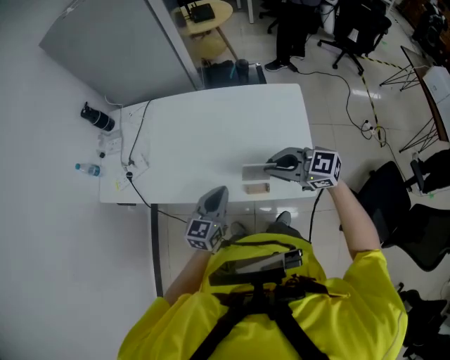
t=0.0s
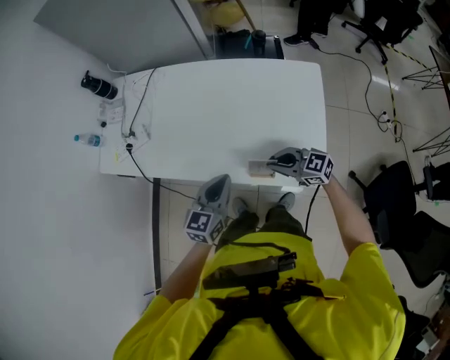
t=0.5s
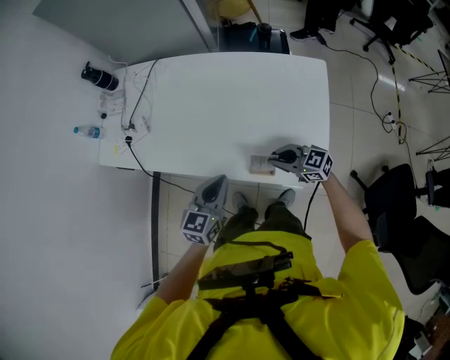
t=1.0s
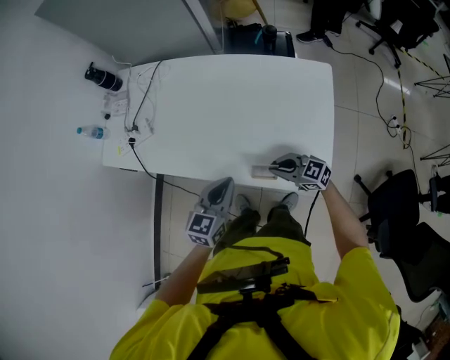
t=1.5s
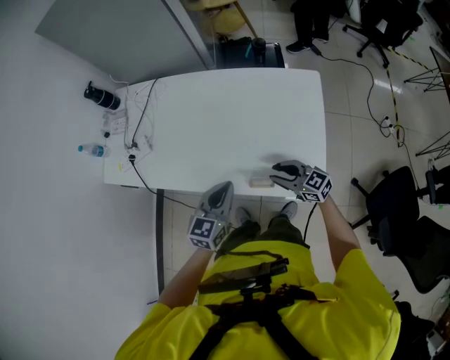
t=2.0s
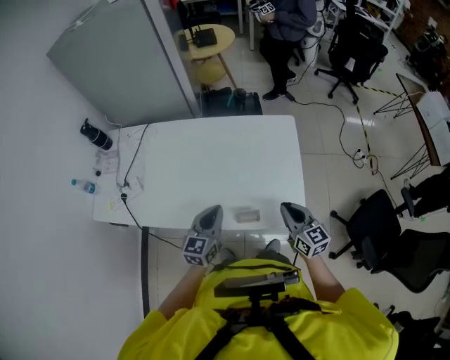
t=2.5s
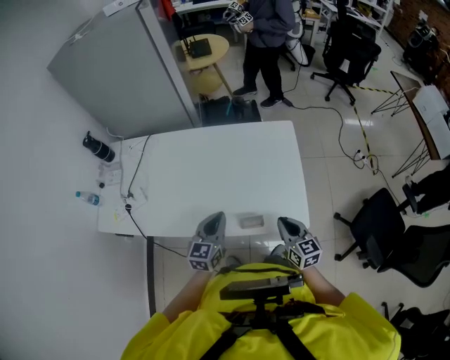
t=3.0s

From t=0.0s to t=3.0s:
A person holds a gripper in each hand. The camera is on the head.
From t=0.0s to t=1.5s: The right gripper moves downward, some 20 cm.
From t=1.5s to t=3.0s: The right gripper goes about 10 cm upward, rotates some 60 degrees, and opens, then closes once more.

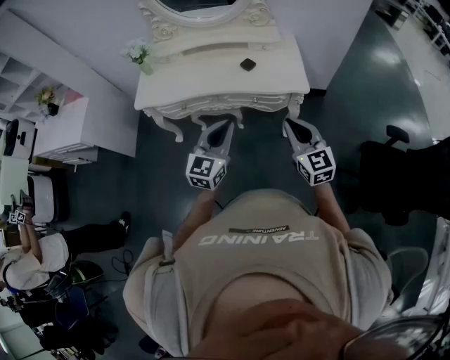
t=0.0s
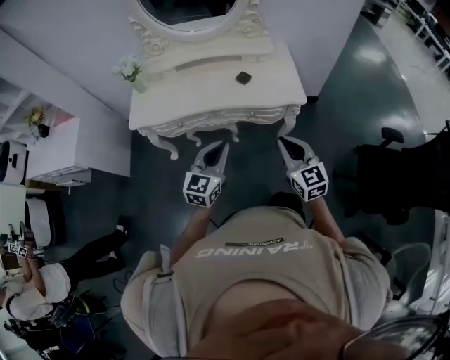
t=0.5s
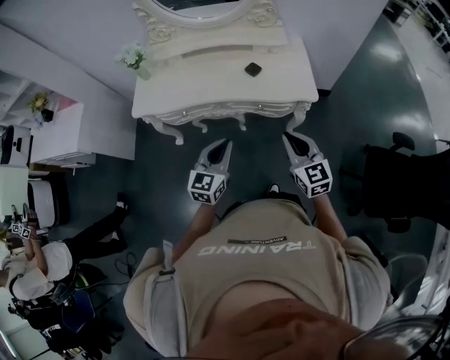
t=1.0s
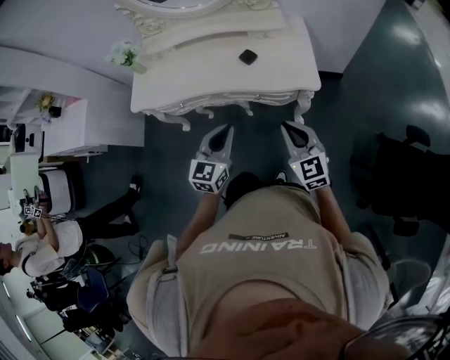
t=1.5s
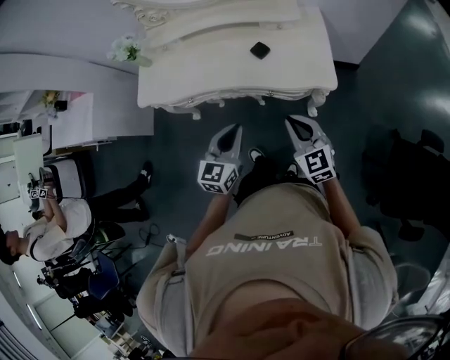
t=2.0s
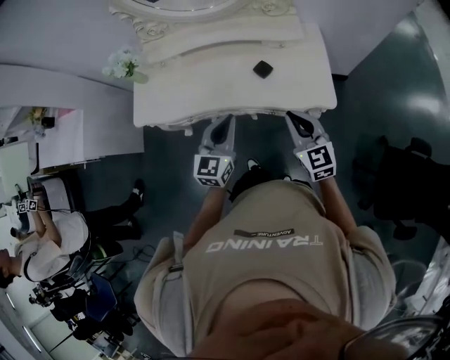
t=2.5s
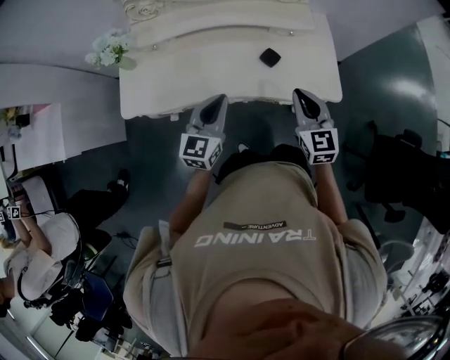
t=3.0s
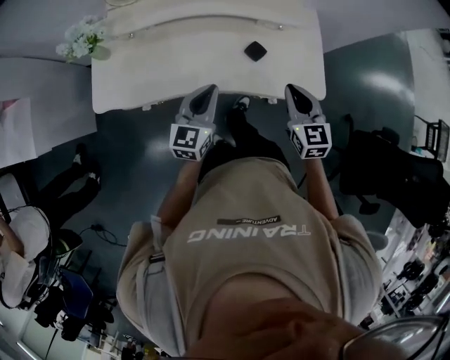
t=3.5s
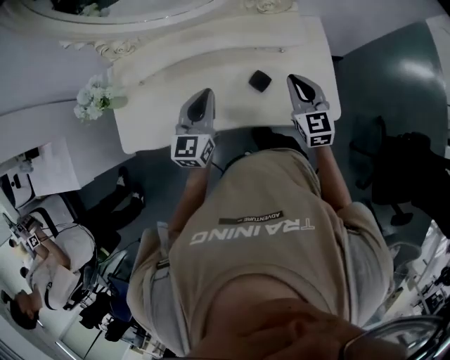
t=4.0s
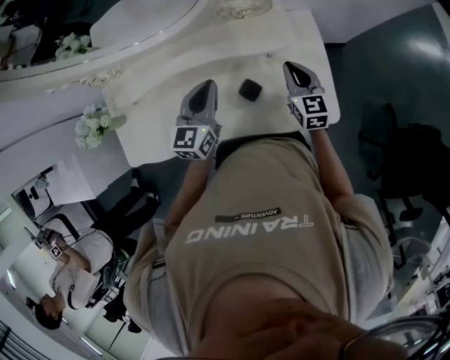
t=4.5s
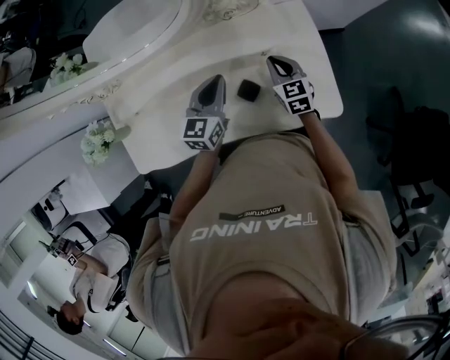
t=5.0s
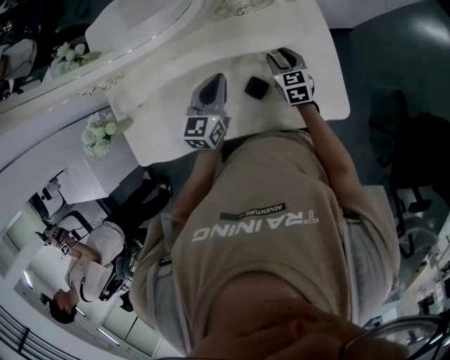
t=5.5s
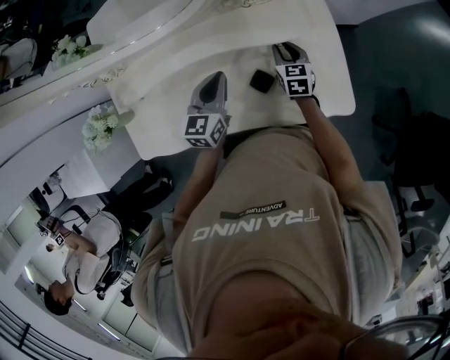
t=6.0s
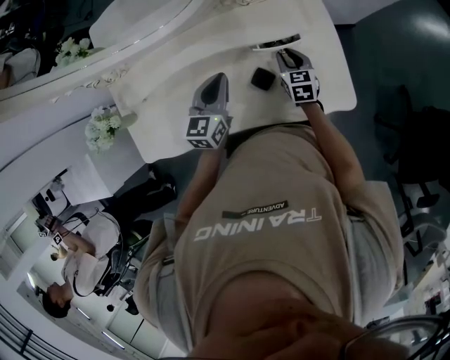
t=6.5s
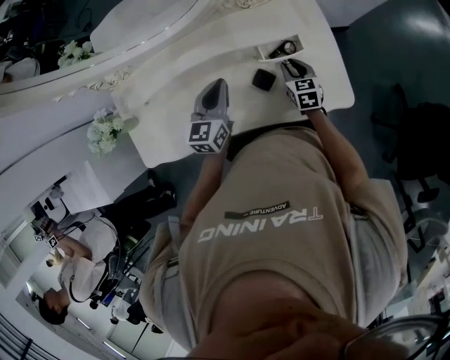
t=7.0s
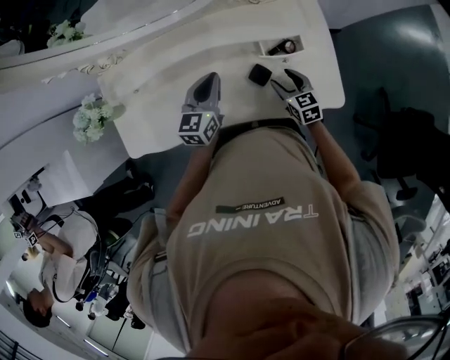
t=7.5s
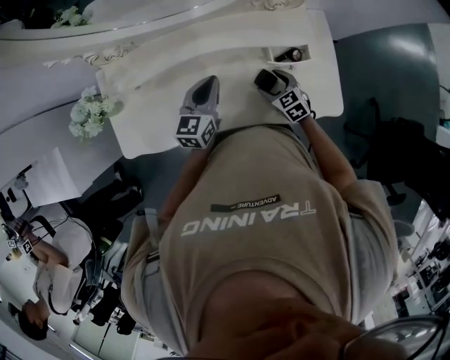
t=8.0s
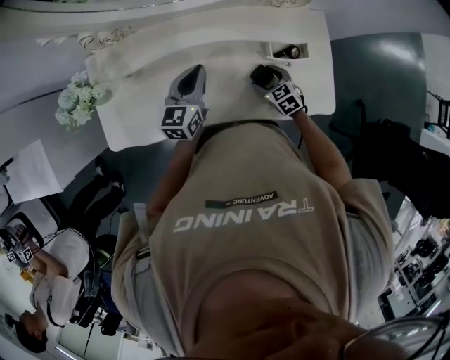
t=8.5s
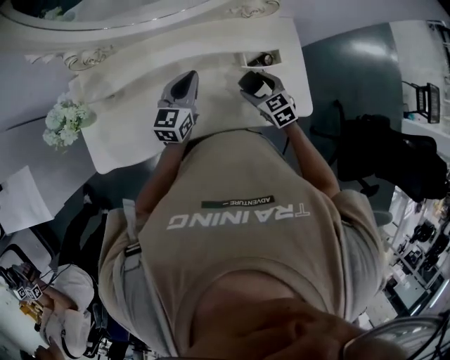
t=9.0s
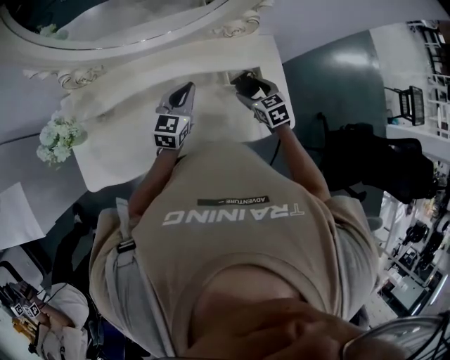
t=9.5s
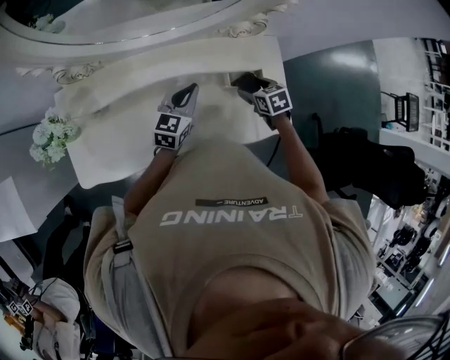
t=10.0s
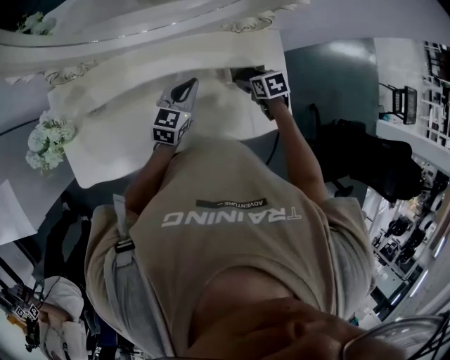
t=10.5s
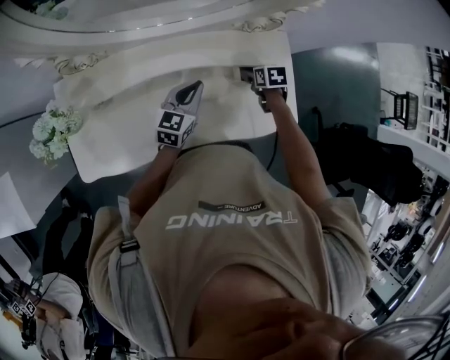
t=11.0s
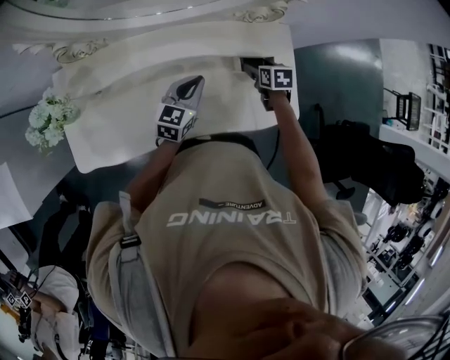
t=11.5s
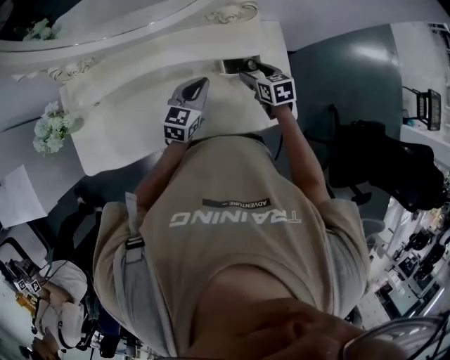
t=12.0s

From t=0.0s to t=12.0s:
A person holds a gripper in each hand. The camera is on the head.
From t=0.0s to t=2.0s: The grippers both shift forward and downward by some 20 cm.
From t=2.0s to t=4.0s: The grippers both shift forward by some 35 cm. The right gripper swivels some 20 degrees.
From t=4.0s to t=6.0s: The left gripper moves forward, downward and to the right, roughly 15 cm. The right gripper heads downward and forward, covering some 25 cm, and changes its angle by about 20 degrees.
From t=6.0s to t=8.0s: The left gripper moves to the left, some 10 cm. Meanwhile the right gripper goes about 15 cm backward and to the left, rotates approximately 30 degrees, and opens up.
From t=8.0s to t=10.0s: The left gripper shifts by roughly 5 cm. Meanwhile the right gripper heads to the right, upward and forward, covering roughly 10 cm, and swivels approximately 20 degrees.
From t=10.0s to t=12.0s: The left gripper moves to the right, about 10 cm.

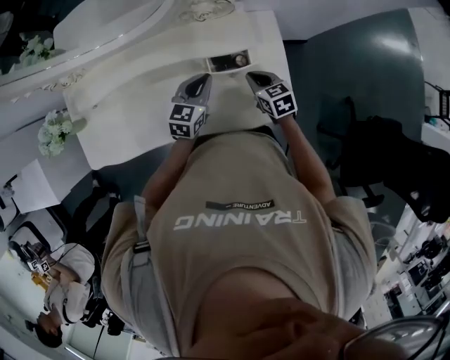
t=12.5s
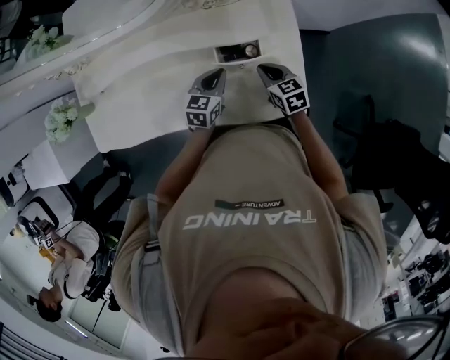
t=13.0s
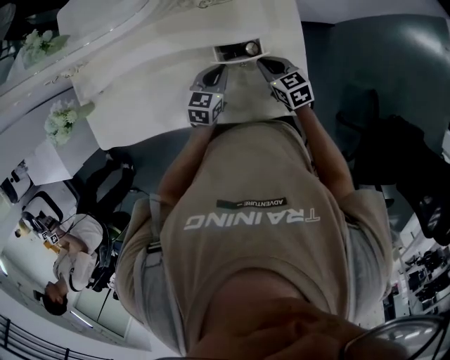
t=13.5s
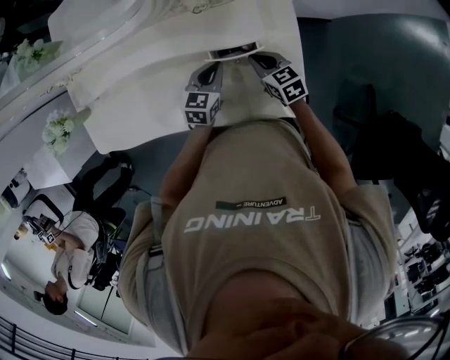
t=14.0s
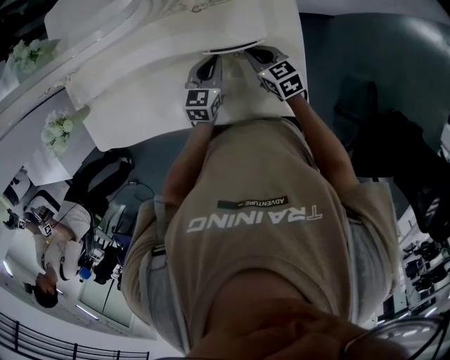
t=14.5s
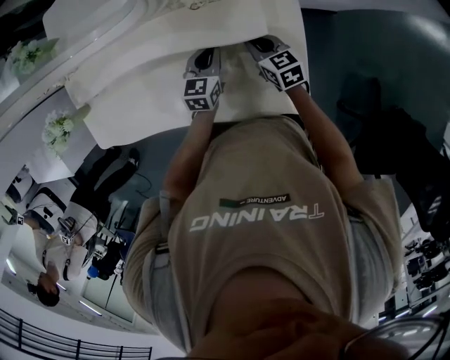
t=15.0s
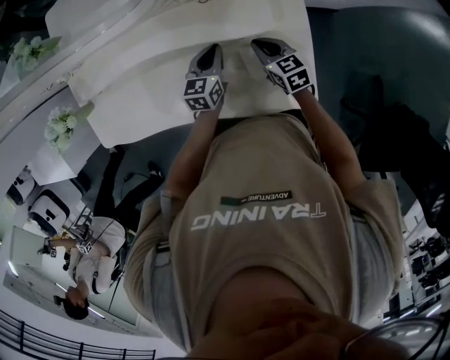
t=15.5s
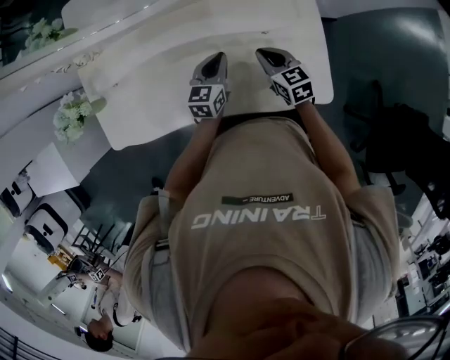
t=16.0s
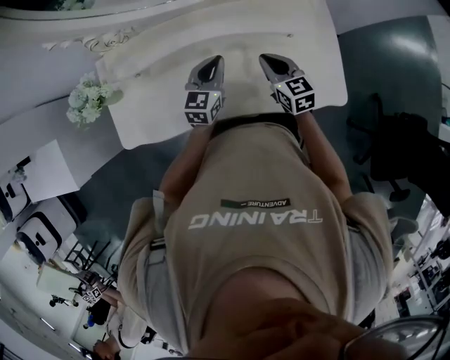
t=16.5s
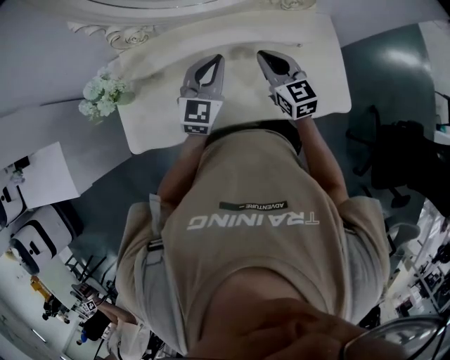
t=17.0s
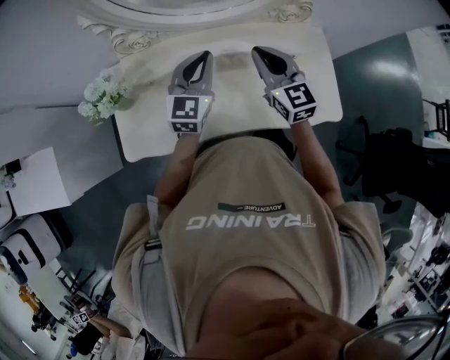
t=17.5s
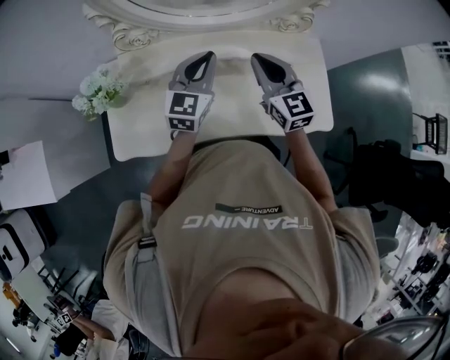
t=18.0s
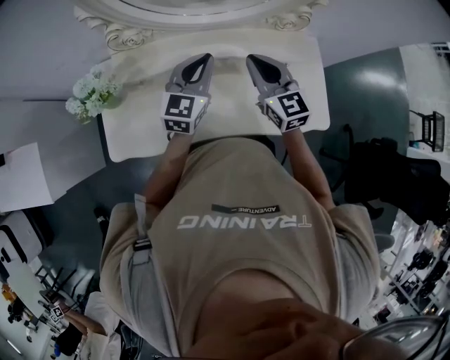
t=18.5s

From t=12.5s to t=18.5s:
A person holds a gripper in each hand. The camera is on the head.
From t=12.5s to t=14.5s: The right gripper heads forward, covering about 5 cm, while the left gripper heads downward, covering roughly 10 cm.
From t=14.5s to t=16.5s: Both grippers travel together to the left and upward, approximately 25 cm.
From t=16.5s to t=18.5s: Both grippers move upward and to the left, approximately 15 cm. The right gripper changes its angle by approximately 20 degrees.

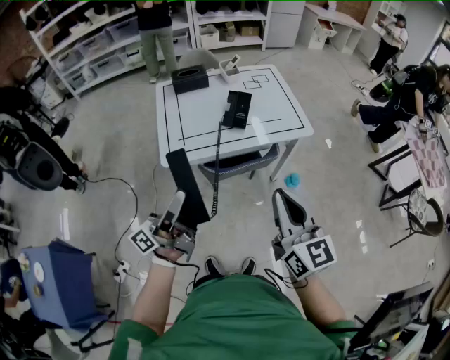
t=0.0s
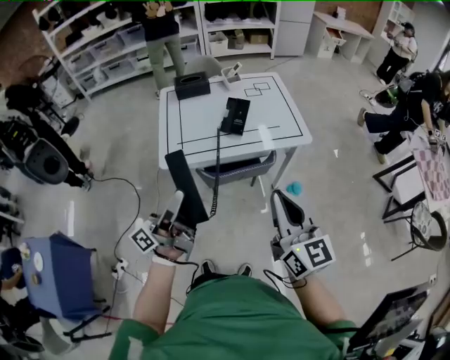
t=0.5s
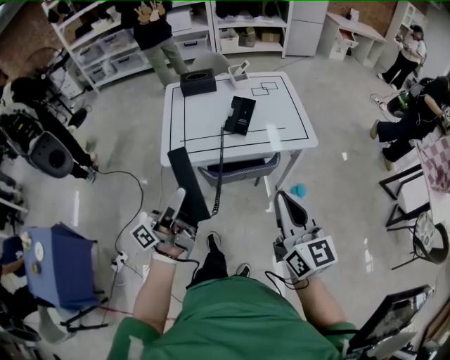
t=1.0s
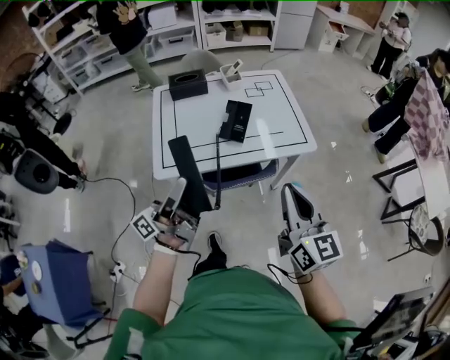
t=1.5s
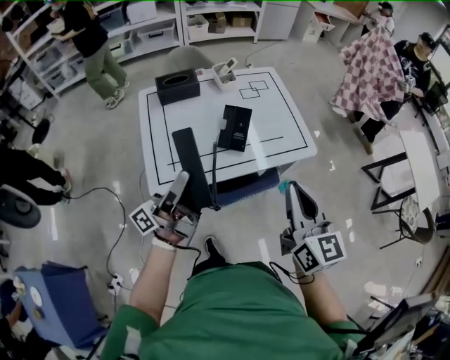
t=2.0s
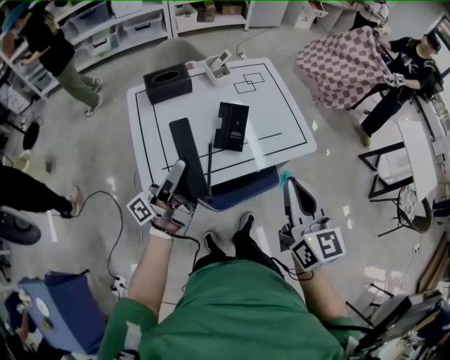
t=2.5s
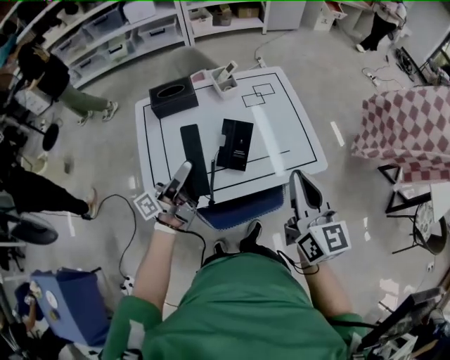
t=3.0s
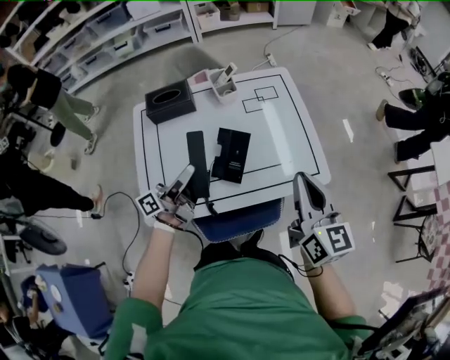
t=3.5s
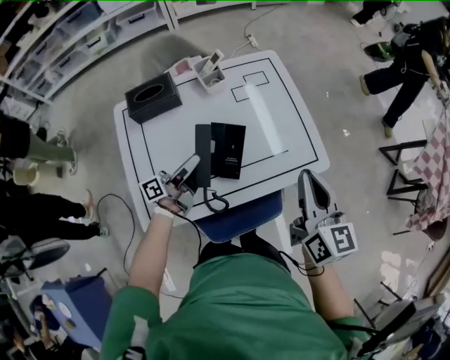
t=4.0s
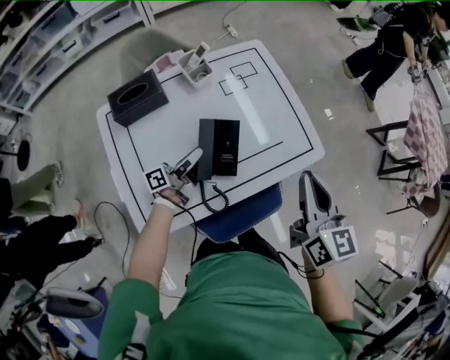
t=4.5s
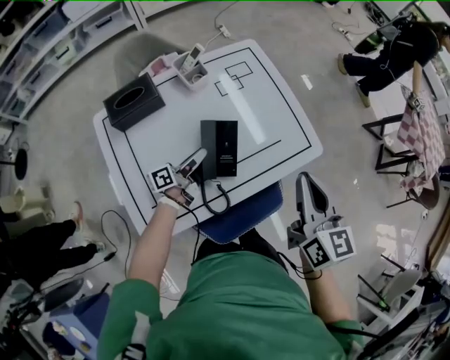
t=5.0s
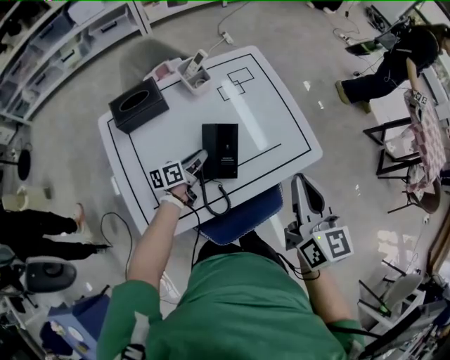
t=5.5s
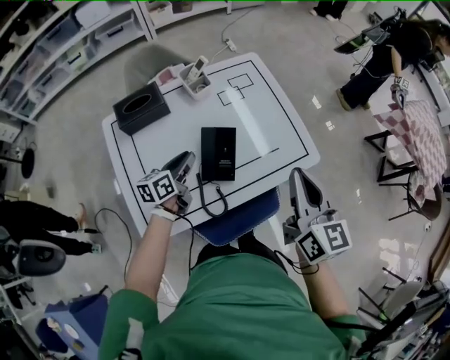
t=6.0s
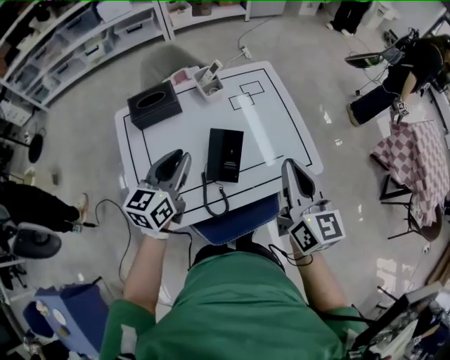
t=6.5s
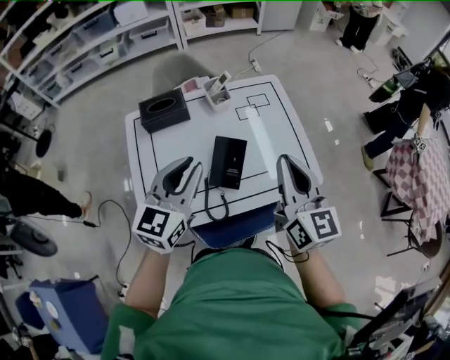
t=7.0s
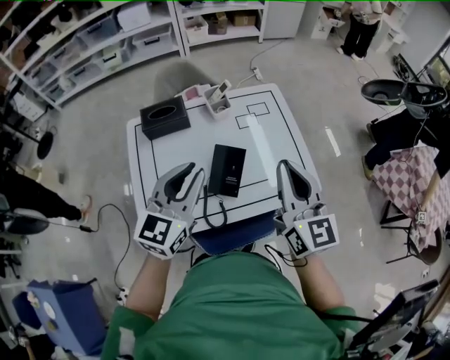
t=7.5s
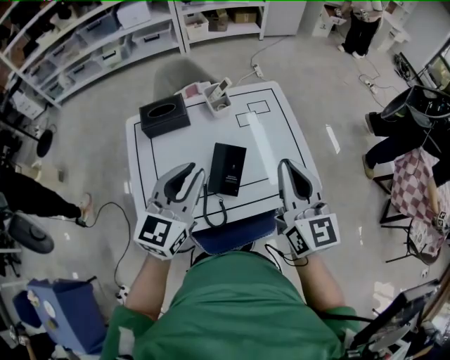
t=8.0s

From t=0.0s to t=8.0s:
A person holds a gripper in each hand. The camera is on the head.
From t=0.0s to t=2.0s: The two grippers go some 20 cm forward.
From t=2.0s to t=4.0s: The left gripper shifts about 35 cm forward and downward, and swivels roughly 30 degrees. Meanwhile the right gripper is displaced forward by about 25 cm.
From t=4.0s to t=6.0s: The left gripper reaches approximately 10 cm downward, then returns, and rotates about 40 degrees.
From t=6.0s to t=8.0s: The right gripper goes some 5 cm upward. Meanwhile the left gripper heads upward, covering roughly 25 cm, and rolls clockwise, seen from behind, by about 40 degrees.
